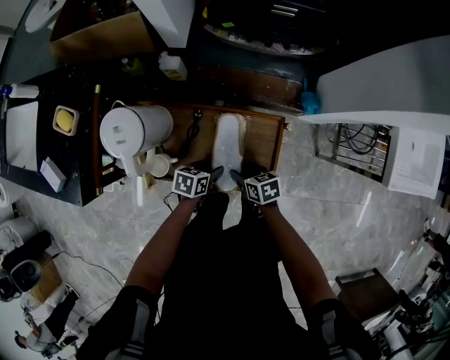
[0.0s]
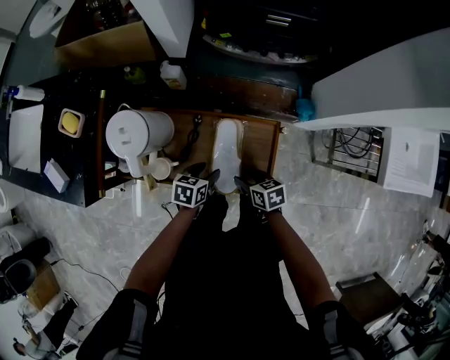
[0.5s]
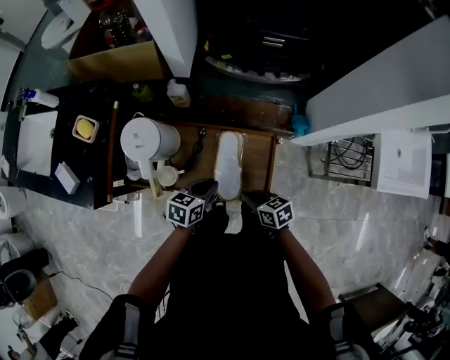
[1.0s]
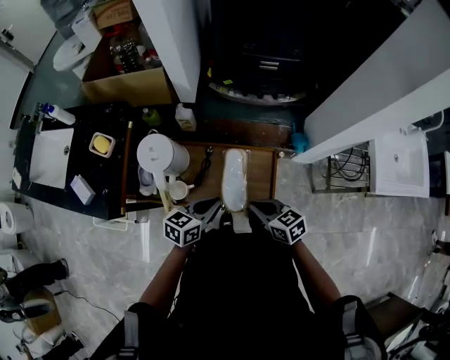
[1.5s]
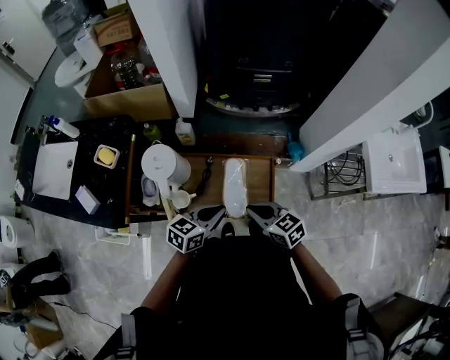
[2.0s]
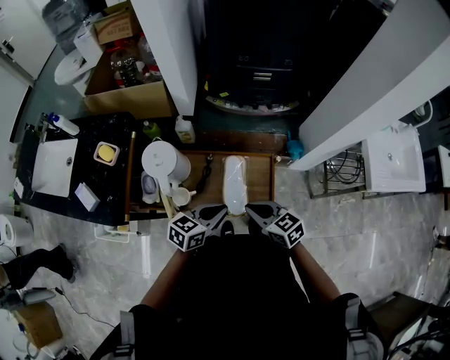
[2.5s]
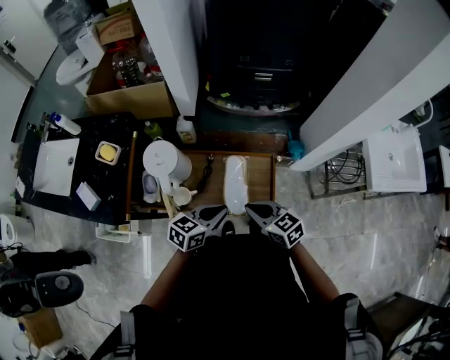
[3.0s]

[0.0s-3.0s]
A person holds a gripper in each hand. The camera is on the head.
0.0s to 1.5s: Both grippers move upward, some 20 cm. The left gripper changes its angle by about 30 degrees, and closes up; the right gripper turns by roughly 20 degrees, and closes up.
1.5s to 3.0s: The right gripper ends up approximately 5 cm from where it was.

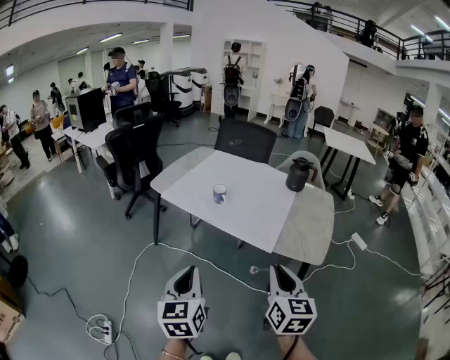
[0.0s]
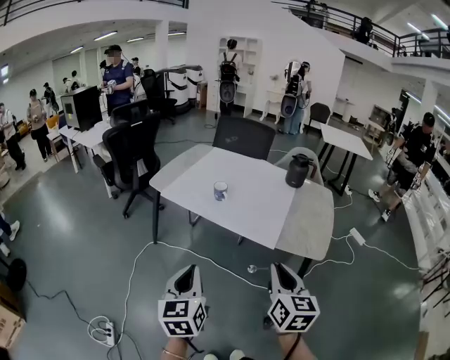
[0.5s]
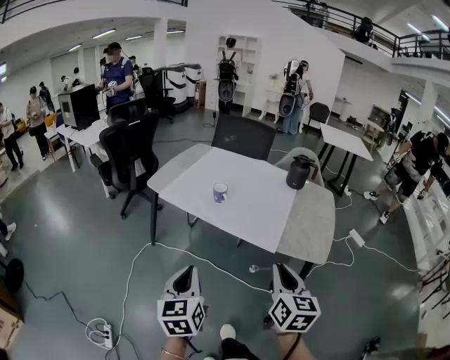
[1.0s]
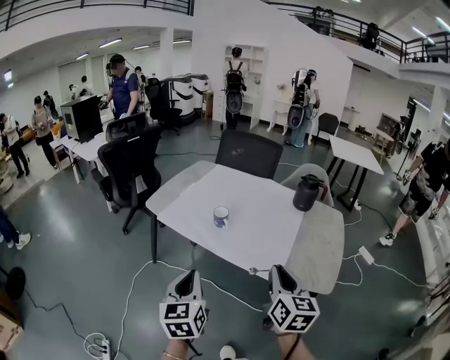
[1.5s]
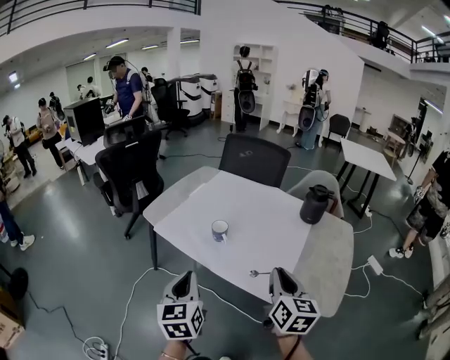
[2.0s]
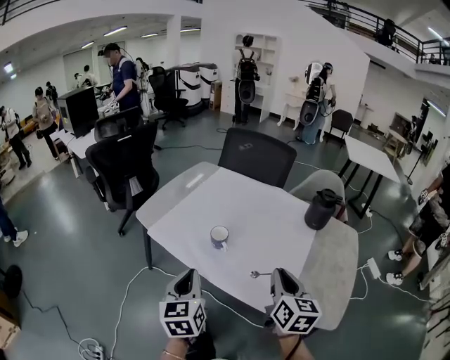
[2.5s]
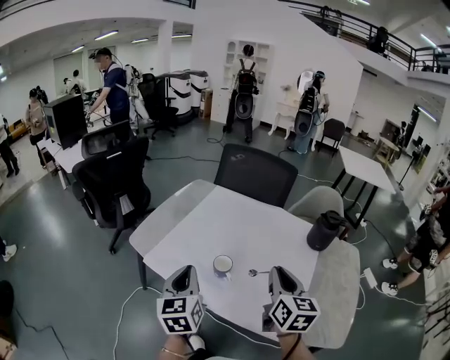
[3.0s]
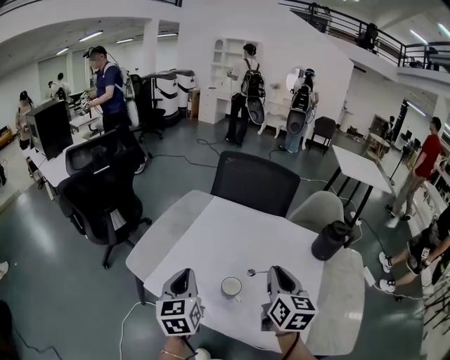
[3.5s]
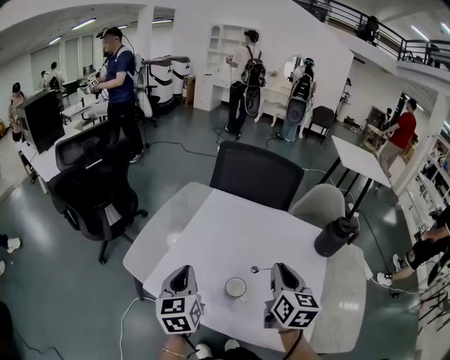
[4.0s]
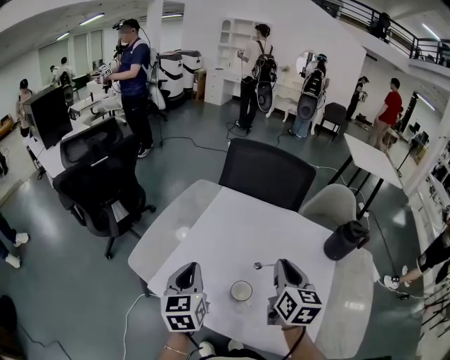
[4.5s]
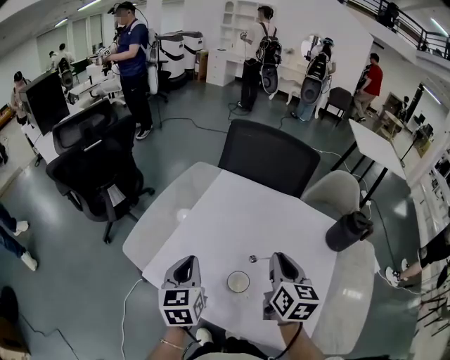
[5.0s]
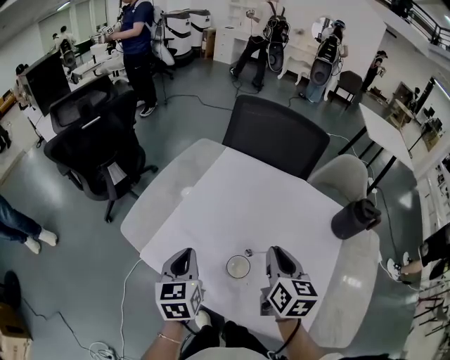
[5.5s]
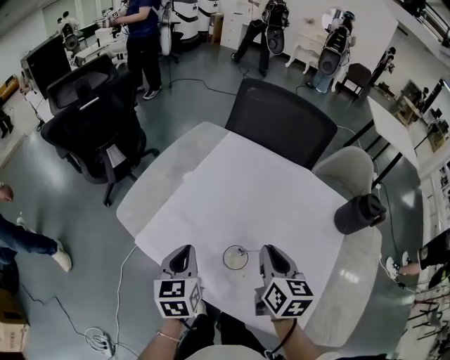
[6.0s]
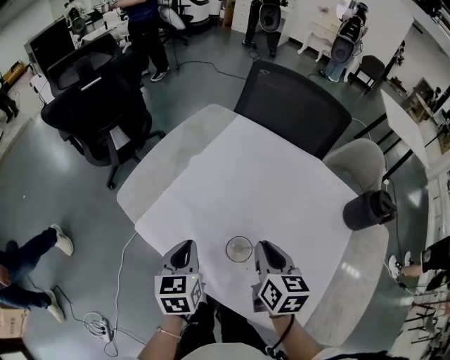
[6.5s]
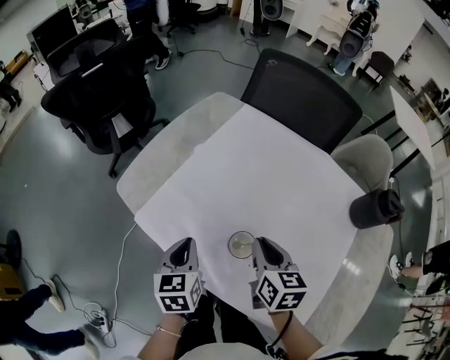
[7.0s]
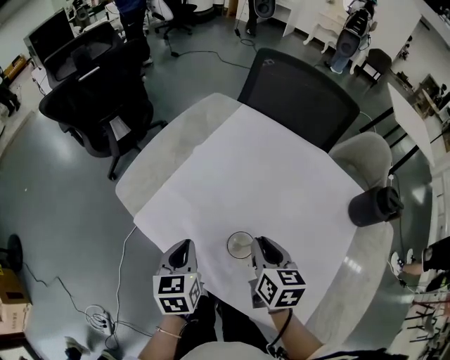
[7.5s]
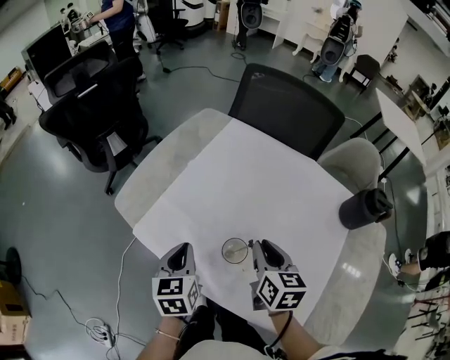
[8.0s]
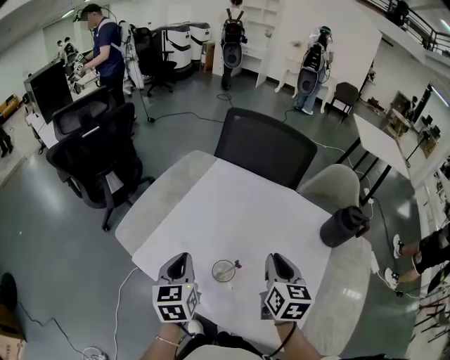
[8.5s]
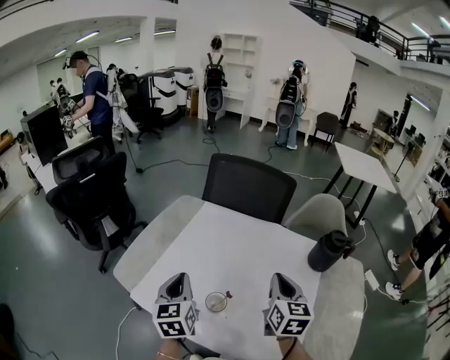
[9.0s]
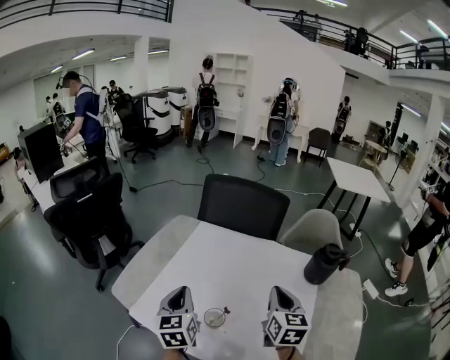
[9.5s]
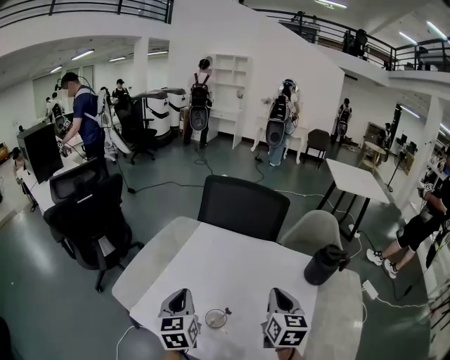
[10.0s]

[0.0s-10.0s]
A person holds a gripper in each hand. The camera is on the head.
0.0s to 2.0s: Both grippers move forward, some 20 cm.
2.0s to 4.0s: The two grippers go some 30 cm forward.
4.0s to 6.0s: Both grippers travel together downward, some 10 cm.
8.0s to 10.0s: The right gripper moves upward and to the right, about 15 cm, and swivels some 20 degrees. Meanwhile the left gripper heads upward and forward, covering approximately 15 cm.

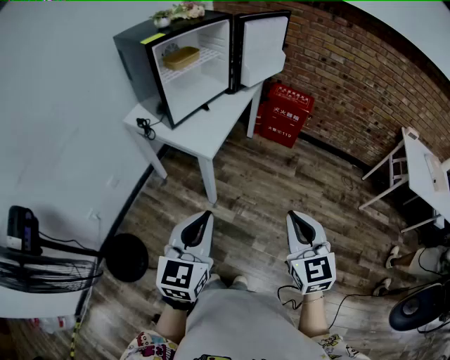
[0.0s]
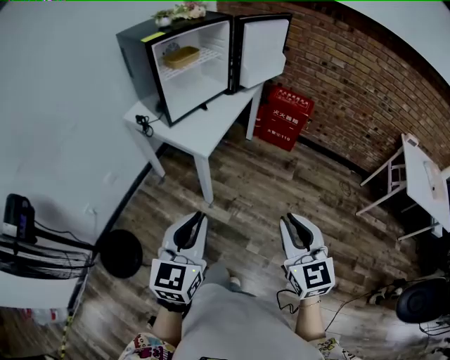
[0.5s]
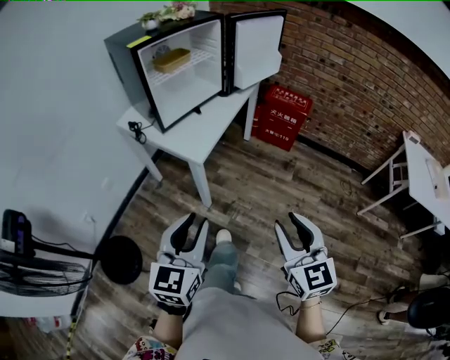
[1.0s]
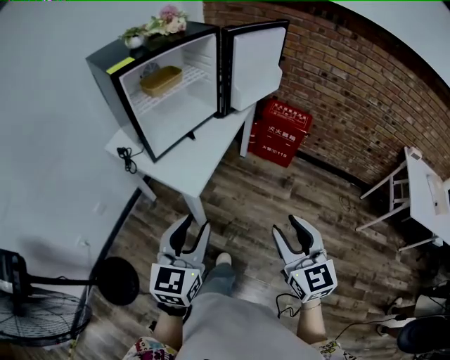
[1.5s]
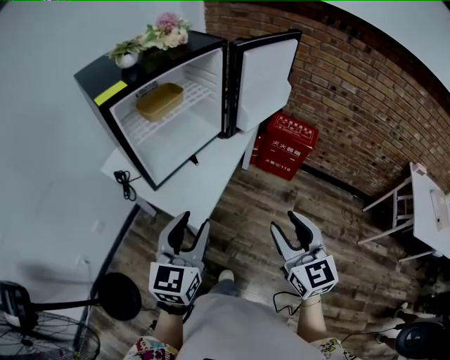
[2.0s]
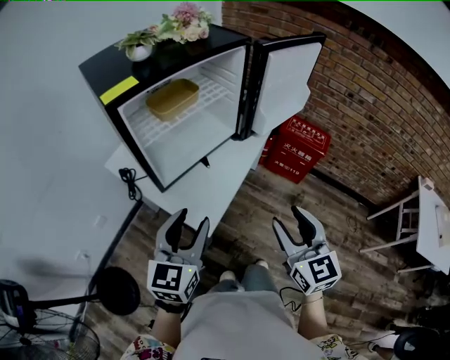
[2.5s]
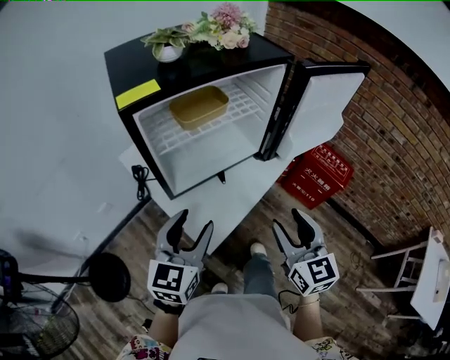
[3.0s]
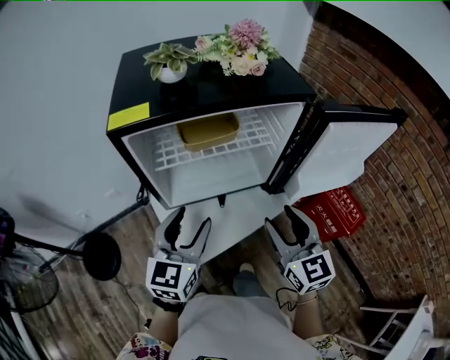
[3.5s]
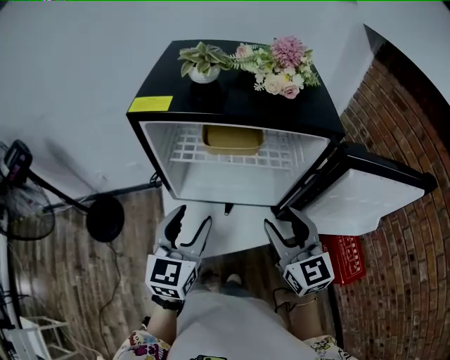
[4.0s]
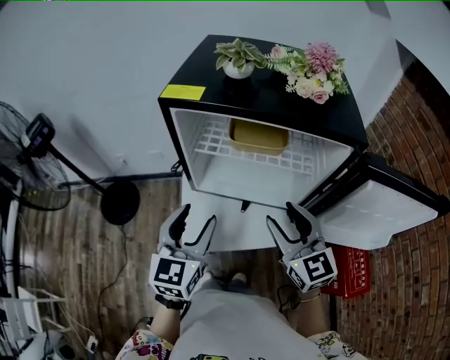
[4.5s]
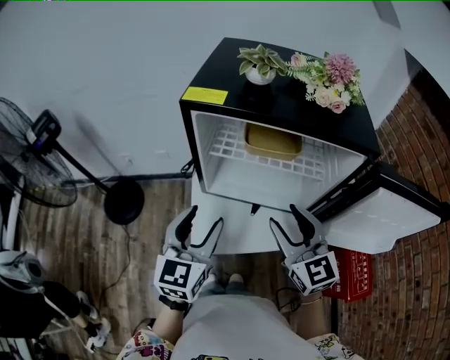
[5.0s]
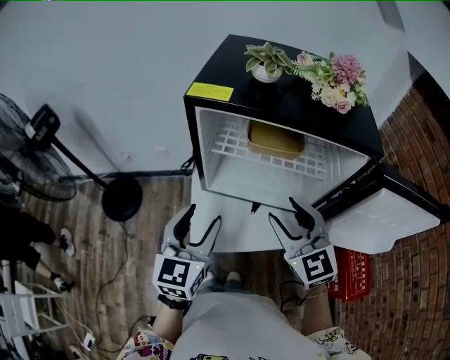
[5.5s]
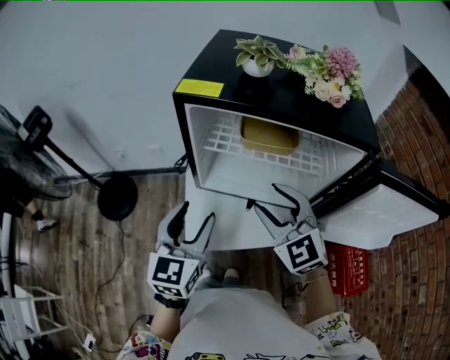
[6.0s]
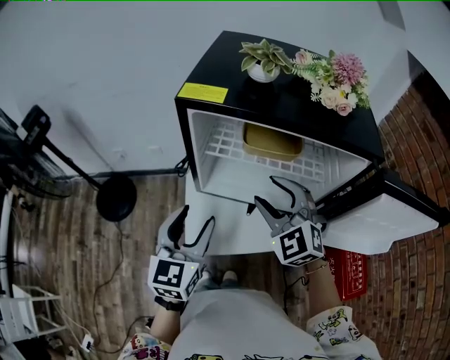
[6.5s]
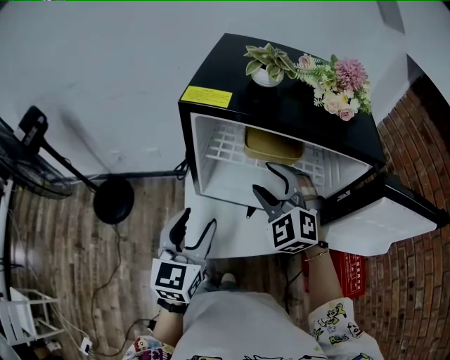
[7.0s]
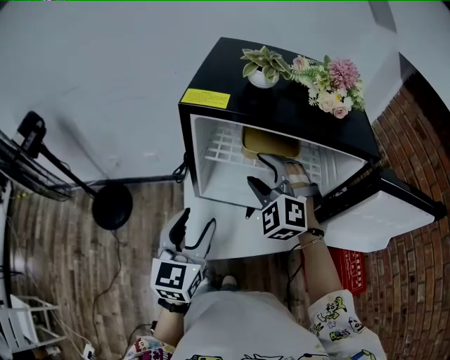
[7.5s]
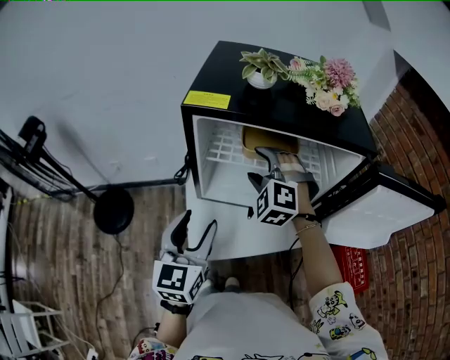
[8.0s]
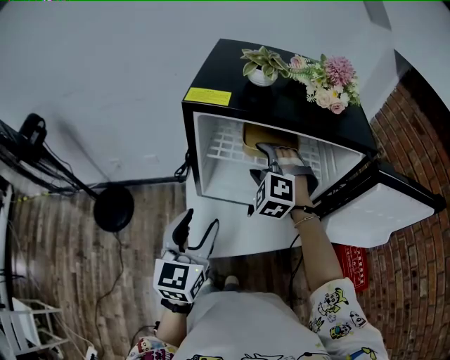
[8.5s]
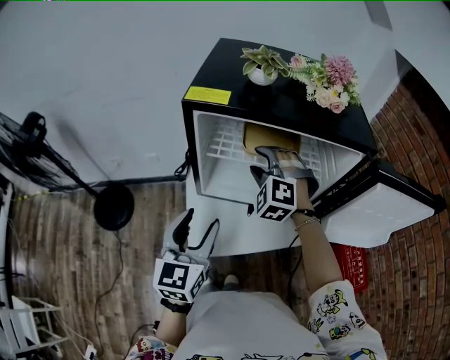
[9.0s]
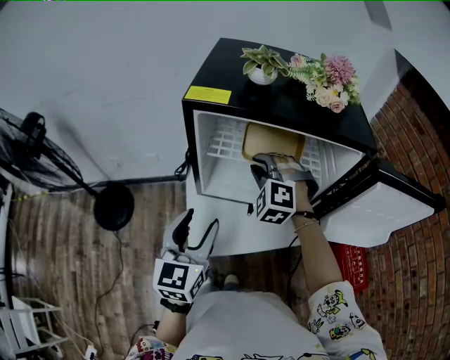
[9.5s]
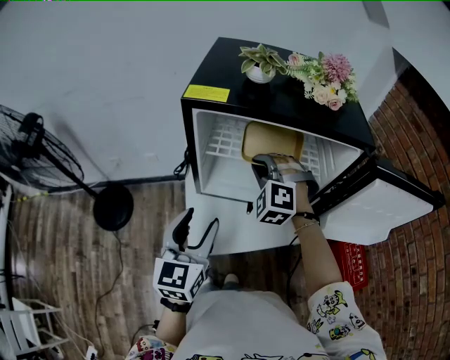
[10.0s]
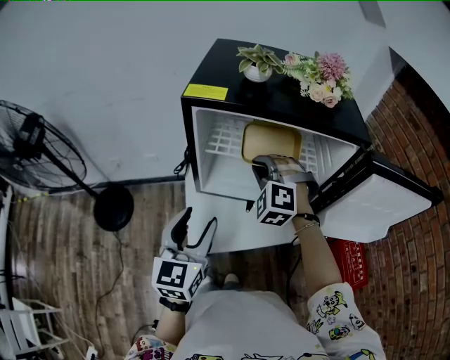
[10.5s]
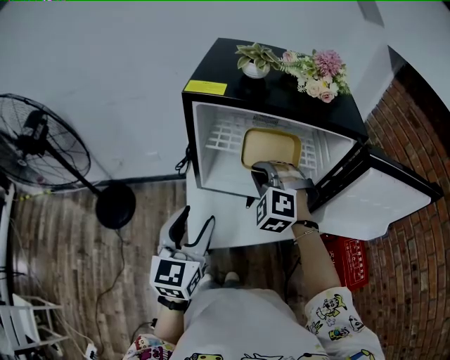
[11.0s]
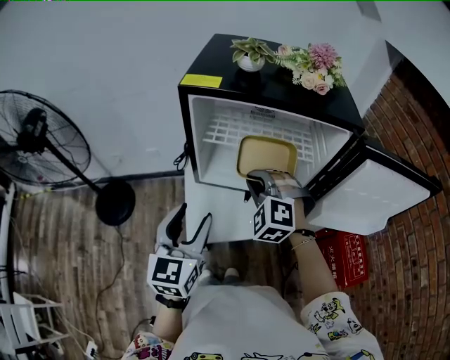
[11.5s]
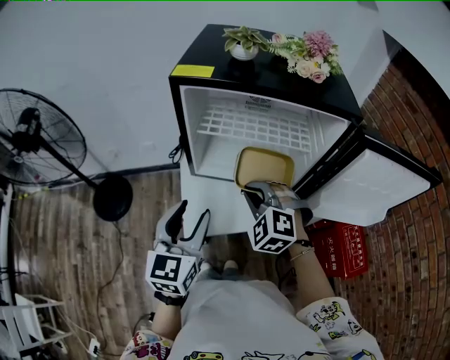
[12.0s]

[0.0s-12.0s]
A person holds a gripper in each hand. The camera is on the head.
0.0s to 2.0s: Both grippers move forward, some 30 cm. The right gripper opens, while the left gripper opens.
2.0s to 4.0s: The left gripper ends up roughly 20 cm from where it was, and turns by some 50 degrees, while the right gripper shifts by about 35 cm, and rotates about 50 degrees.
4.0s to 6.0s: The right gripper shifts about 10 cm to the left and forward, and changes its angle by approximately 30 degrees. The left gripper shifts about 5 cm to the left.
6.0s to 8.0s: The right gripper moves forward, approximately 15 cm, and rotates some 40 degrees.
8.0s to 10.0s: The right gripper closes.
10.0s to 12.0s: The right gripper is displaced backward by some 15 cm.

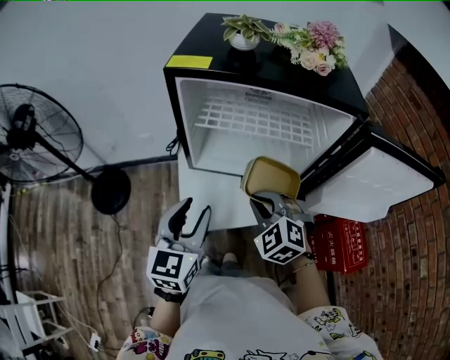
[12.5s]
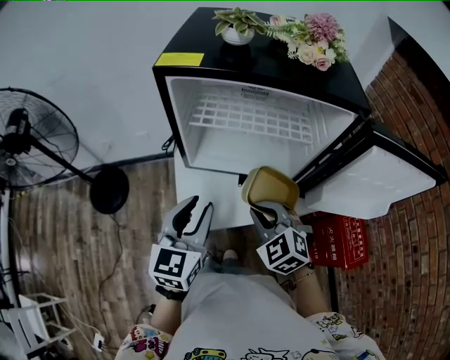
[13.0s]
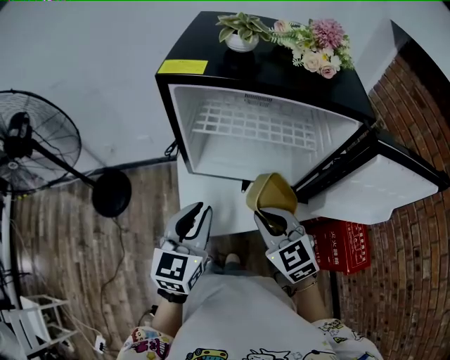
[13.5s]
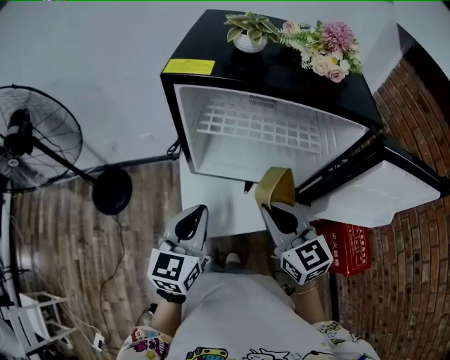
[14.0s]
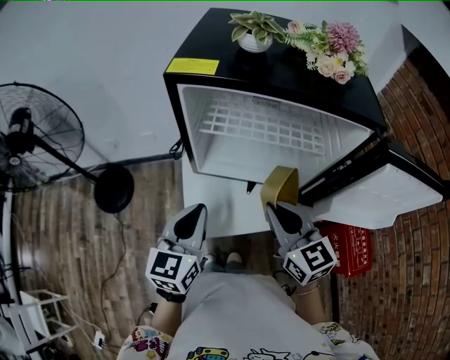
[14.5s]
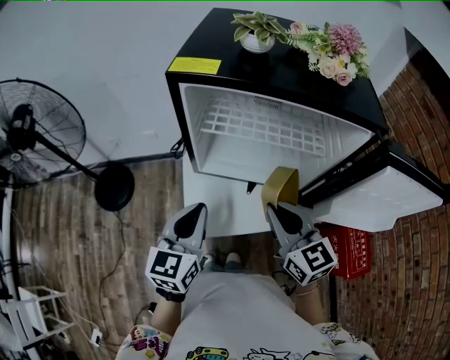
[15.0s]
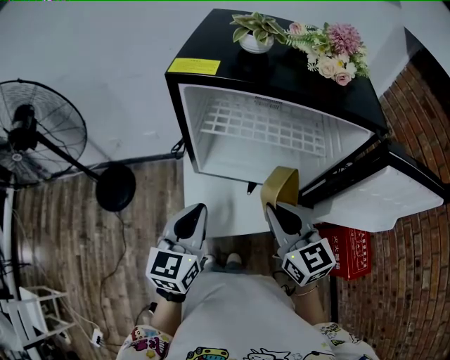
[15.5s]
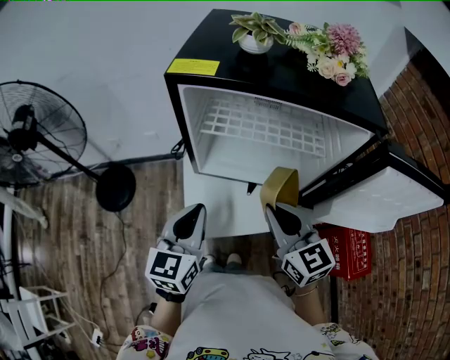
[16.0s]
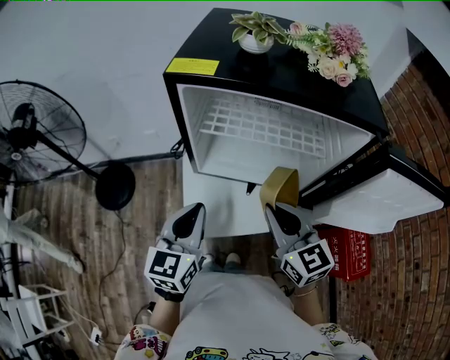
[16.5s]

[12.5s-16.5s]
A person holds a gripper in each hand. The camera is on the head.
12.5s to 14.5s: The left gripper closes its fingers. The right gripper is displaced upward by some 5 cm, and twists some 40 degrees clockwise, seen from behind.
14.5s to 16.5s: Neither gripper changes place.
